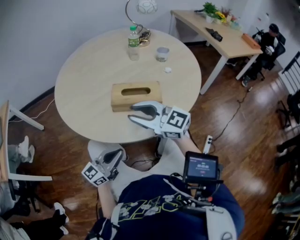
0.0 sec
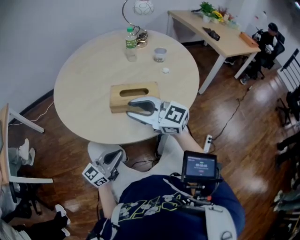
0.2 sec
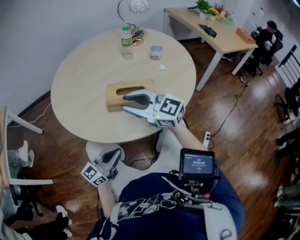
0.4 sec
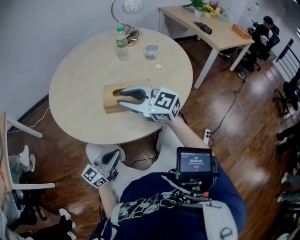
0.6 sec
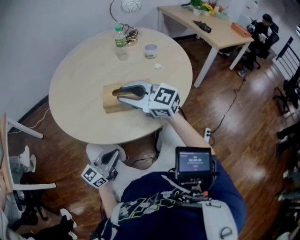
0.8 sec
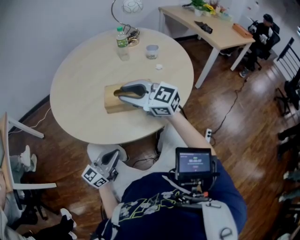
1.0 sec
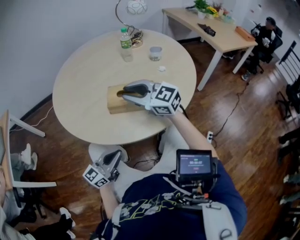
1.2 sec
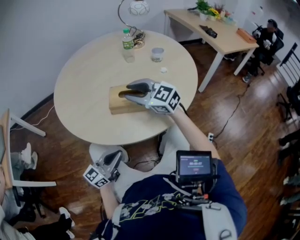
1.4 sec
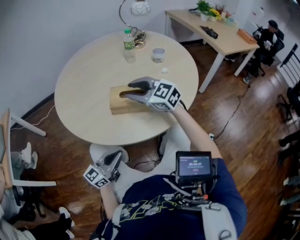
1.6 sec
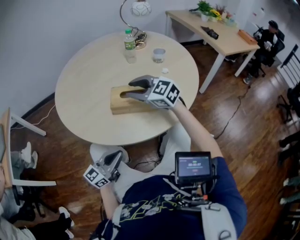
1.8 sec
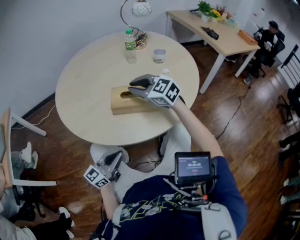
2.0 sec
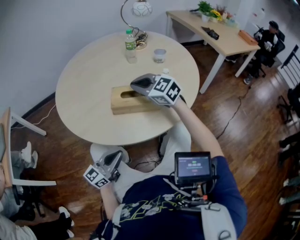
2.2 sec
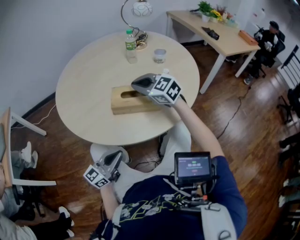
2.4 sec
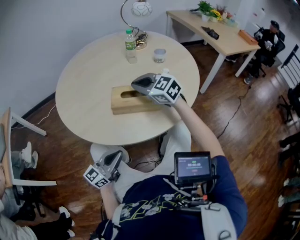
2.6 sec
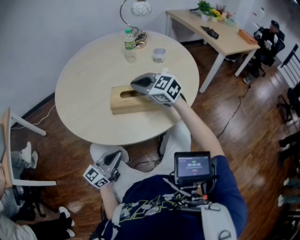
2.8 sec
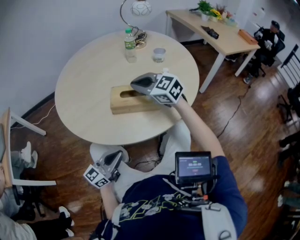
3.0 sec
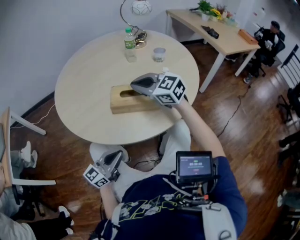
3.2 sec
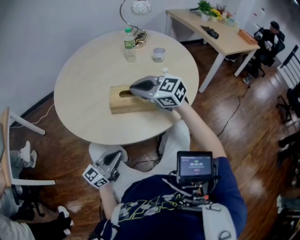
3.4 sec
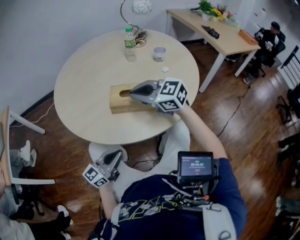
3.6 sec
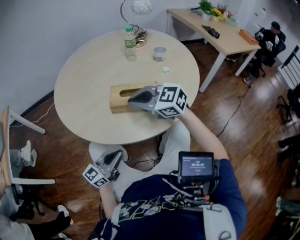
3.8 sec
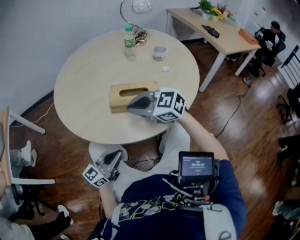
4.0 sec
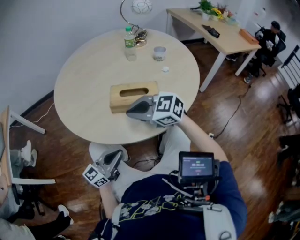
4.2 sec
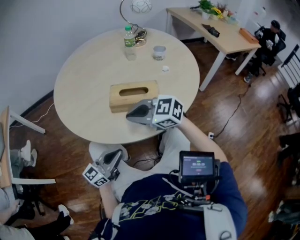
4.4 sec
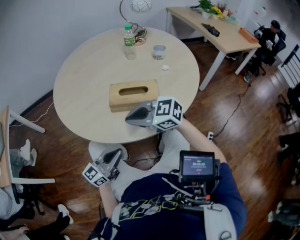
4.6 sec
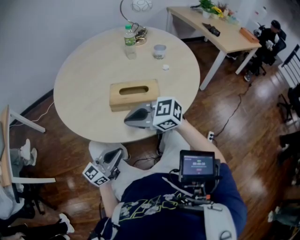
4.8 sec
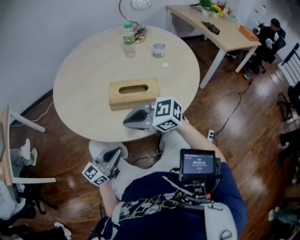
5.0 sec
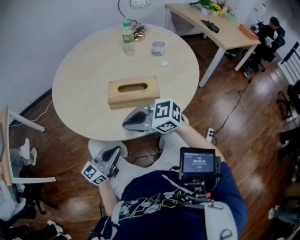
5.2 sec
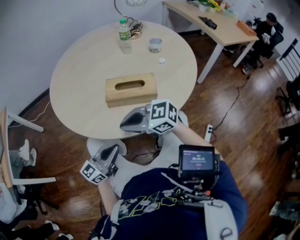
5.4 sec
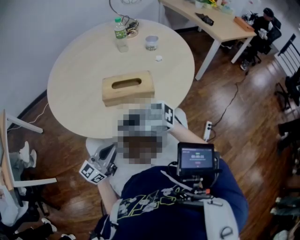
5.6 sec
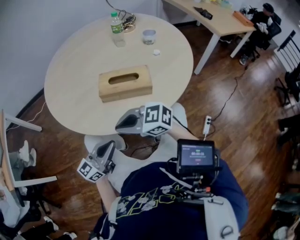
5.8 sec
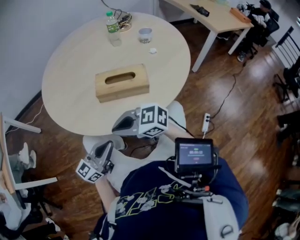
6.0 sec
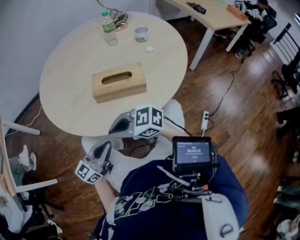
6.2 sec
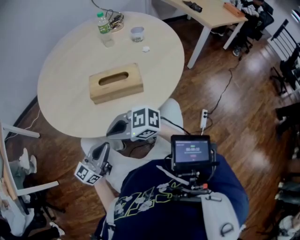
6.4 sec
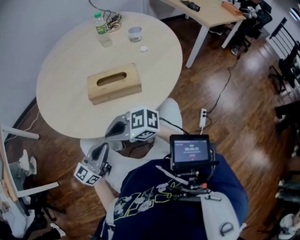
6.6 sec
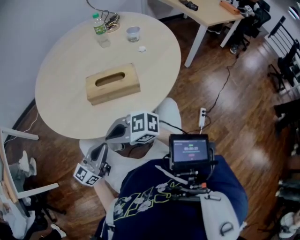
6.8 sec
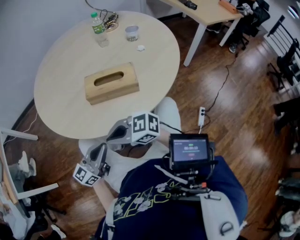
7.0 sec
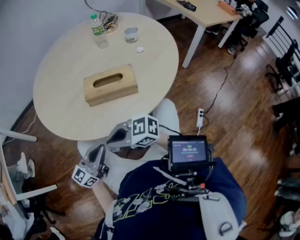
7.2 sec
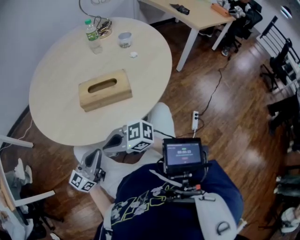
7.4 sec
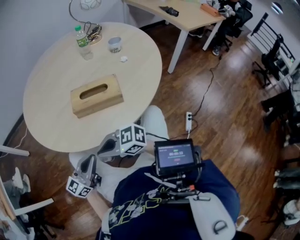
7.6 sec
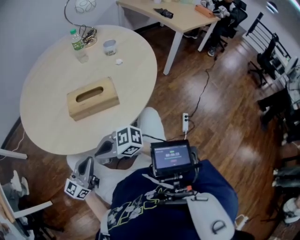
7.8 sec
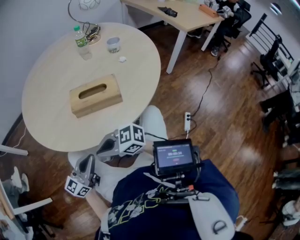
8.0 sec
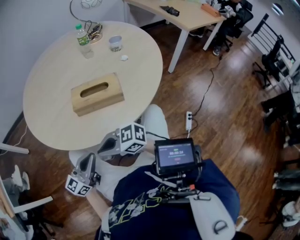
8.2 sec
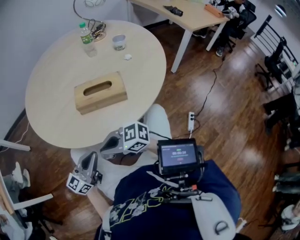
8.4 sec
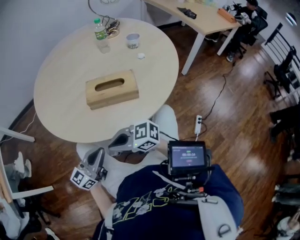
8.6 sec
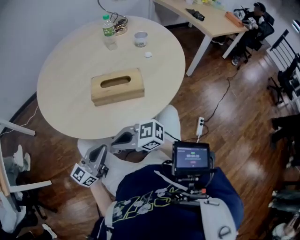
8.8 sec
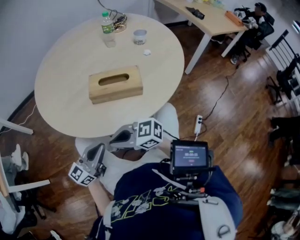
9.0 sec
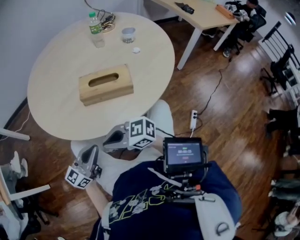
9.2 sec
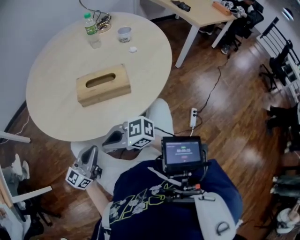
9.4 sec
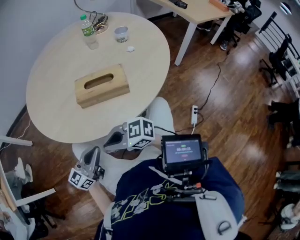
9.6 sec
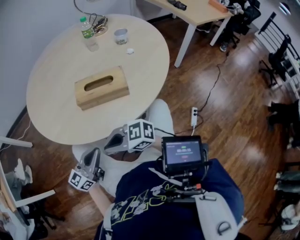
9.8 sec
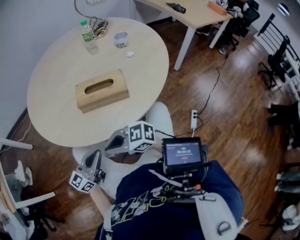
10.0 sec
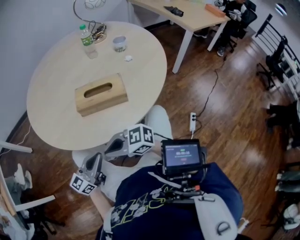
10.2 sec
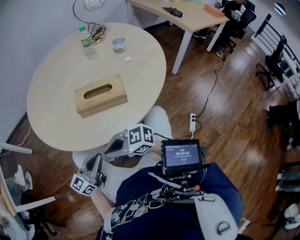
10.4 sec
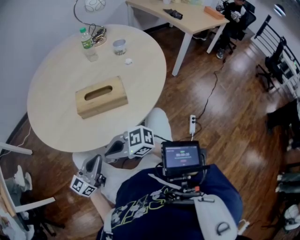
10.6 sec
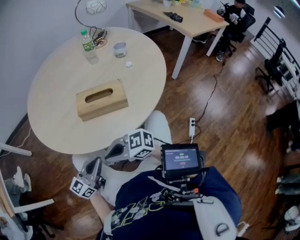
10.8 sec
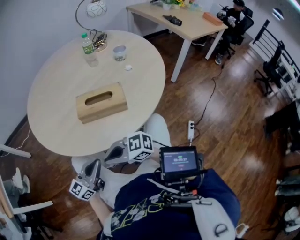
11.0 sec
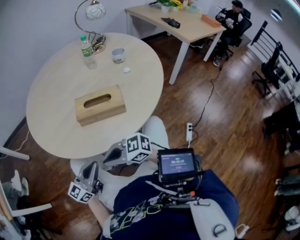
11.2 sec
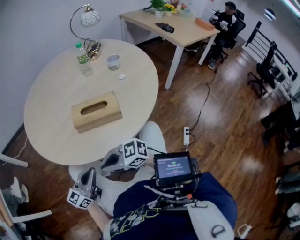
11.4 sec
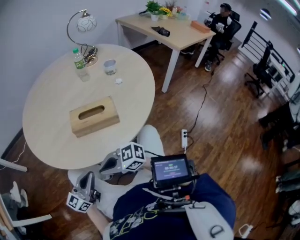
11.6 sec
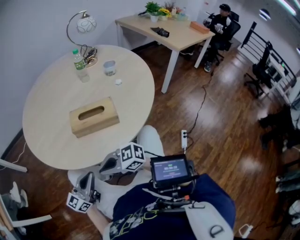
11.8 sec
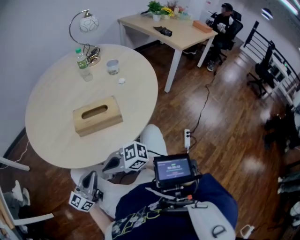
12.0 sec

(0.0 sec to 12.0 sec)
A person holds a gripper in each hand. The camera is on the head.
0.0 sec - 1.6 sec: The right gripper travels forward by some 10 cm.
1.6 sec - 3.0 sec: The right gripper closes its fingers.
3.0 sec - 4.4 sec: The right gripper moves some 15 cm, and rotates roughly 20 degrees.
4.4 sec - 6.0 sec: The right gripper moves about 10 cm.
6.0 sec - 7.6 sec: The right gripper moves about 5 cm.
7.6 sec - 9.0 sec: Both grippers stay about where they are.
9.0 sec - 12.0 sec: There are only small adjustments of the grippers.

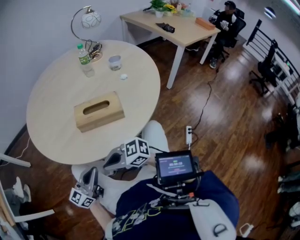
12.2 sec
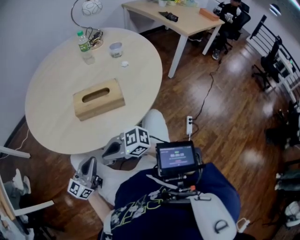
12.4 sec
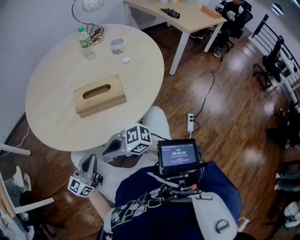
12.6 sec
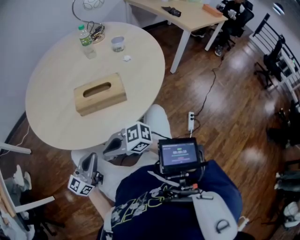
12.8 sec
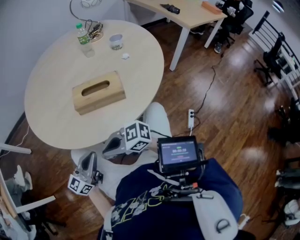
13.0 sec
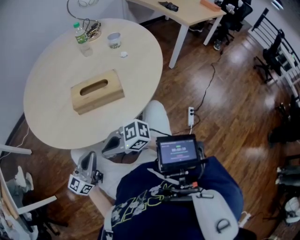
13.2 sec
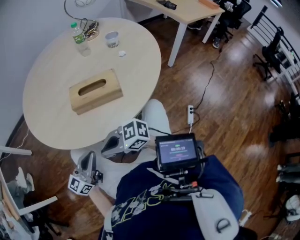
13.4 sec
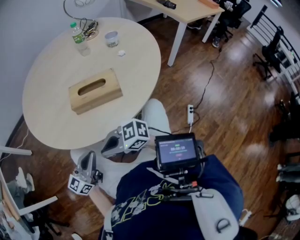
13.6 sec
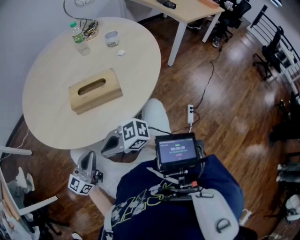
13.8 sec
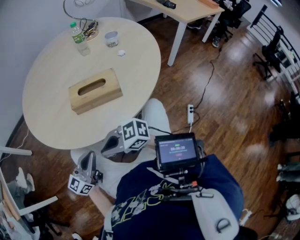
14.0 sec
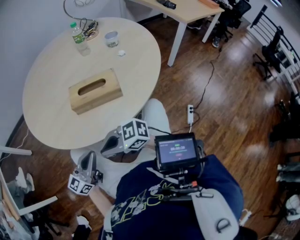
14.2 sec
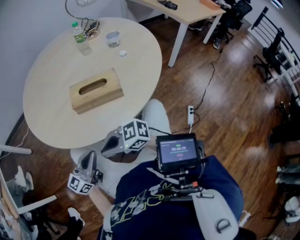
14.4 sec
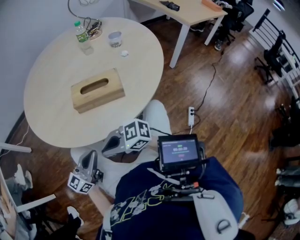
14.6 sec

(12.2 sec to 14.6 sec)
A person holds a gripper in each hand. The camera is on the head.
12.2 sec - 14.6 sec: Both grippers stay about where they are.

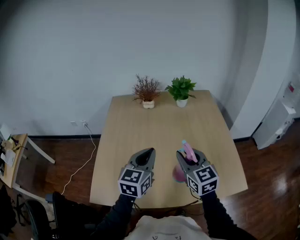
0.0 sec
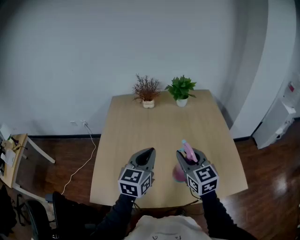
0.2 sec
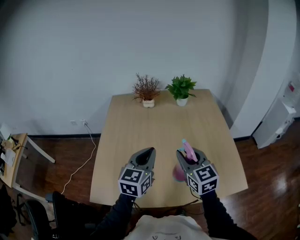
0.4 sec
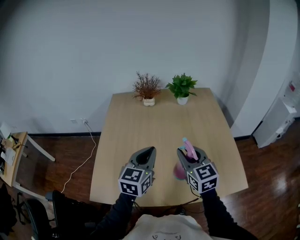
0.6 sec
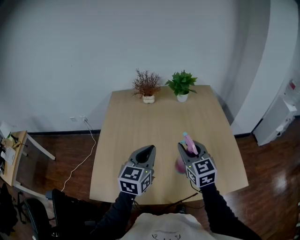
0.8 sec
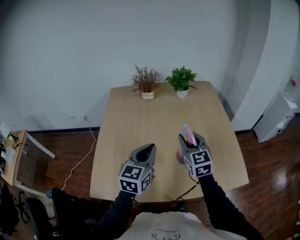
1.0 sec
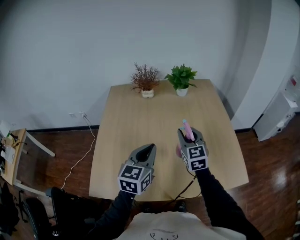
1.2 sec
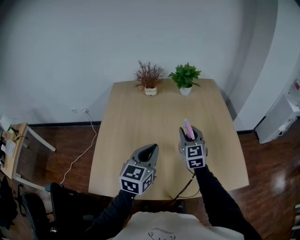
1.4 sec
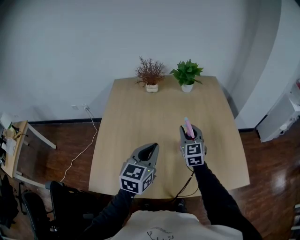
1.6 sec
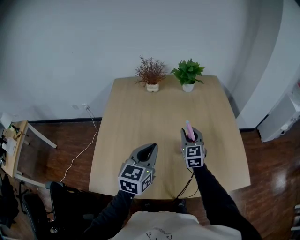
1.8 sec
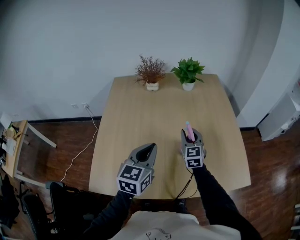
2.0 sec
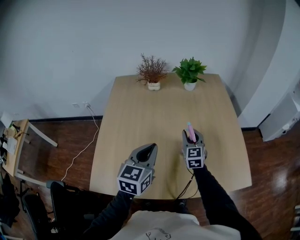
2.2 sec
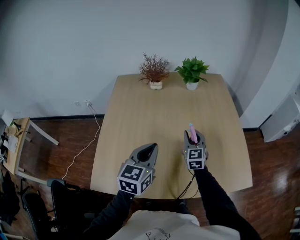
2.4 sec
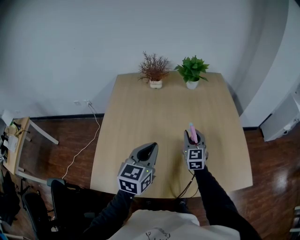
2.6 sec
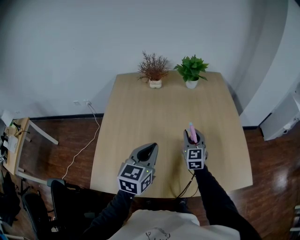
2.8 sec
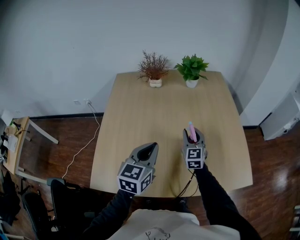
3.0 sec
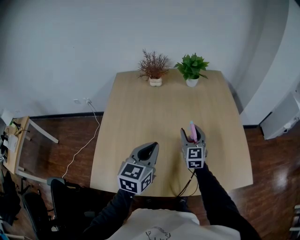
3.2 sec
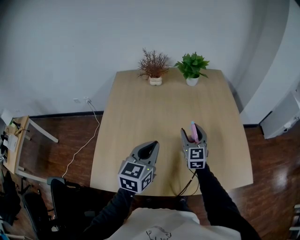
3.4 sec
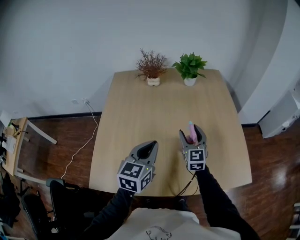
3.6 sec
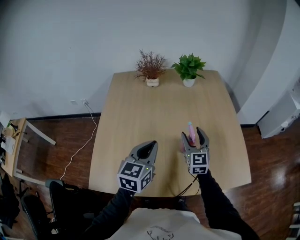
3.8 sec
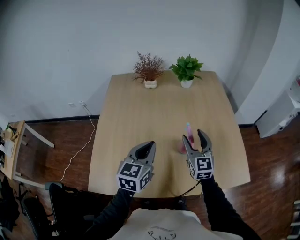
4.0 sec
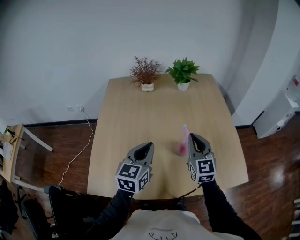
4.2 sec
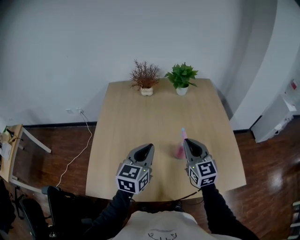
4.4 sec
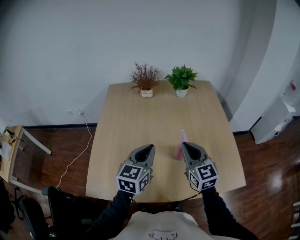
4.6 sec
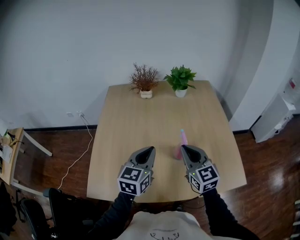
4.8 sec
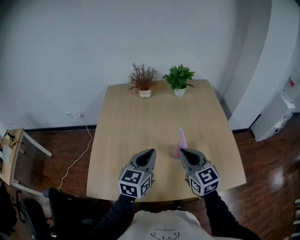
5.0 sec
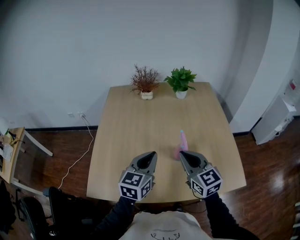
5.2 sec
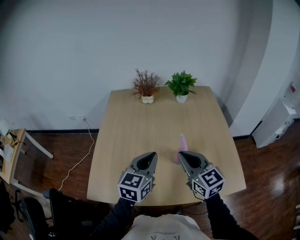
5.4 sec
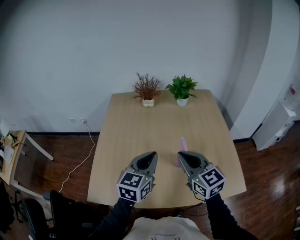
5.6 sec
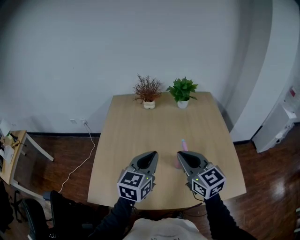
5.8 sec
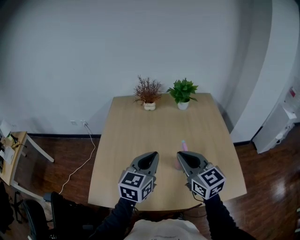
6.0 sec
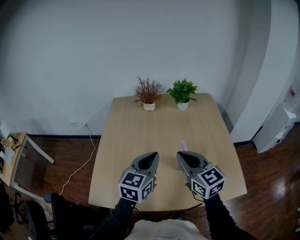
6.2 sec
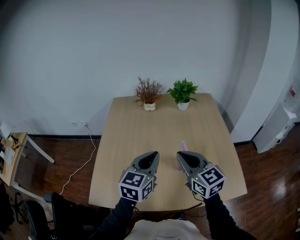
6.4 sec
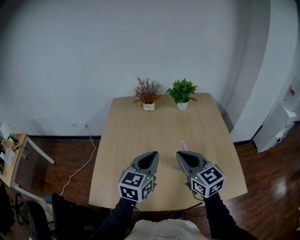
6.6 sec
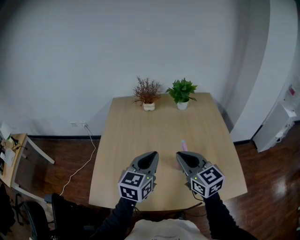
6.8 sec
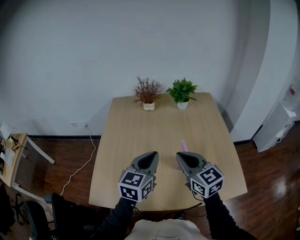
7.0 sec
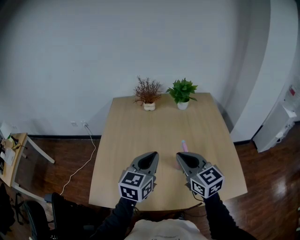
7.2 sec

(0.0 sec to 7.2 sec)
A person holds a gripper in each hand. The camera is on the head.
0.0 sec - 1.4 sec: The right gripper travels forward and downward by some 15 cm.
1.4 sec - 2.8 sec: The right gripper goes roughly 10 cm downward.
2.8 sec - 4.4 sec: The right gripper goes approximately 15 cm upward and backward, and opens, then closes again.
4.4 sec - 5.8 sec: The right gripper heads upward and backward, covering about 10 cm. Meanwhile the left gripper moves some 5 cm.
5.8 sec - 7.2 sec: Both grippers stay put.

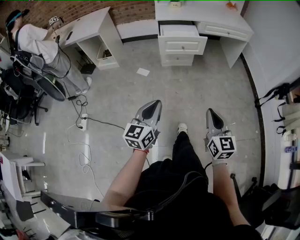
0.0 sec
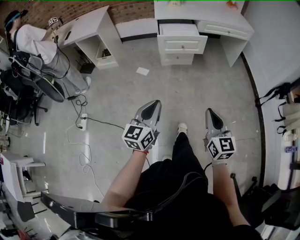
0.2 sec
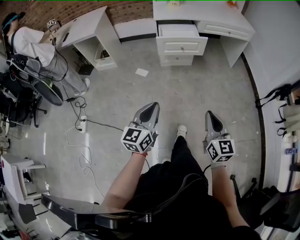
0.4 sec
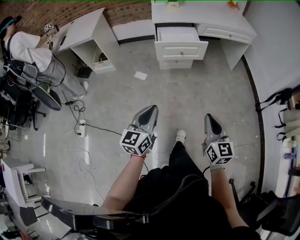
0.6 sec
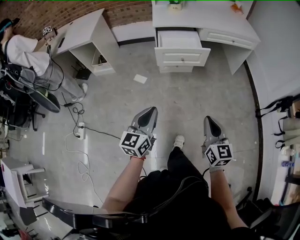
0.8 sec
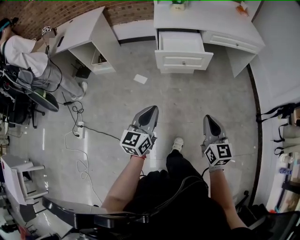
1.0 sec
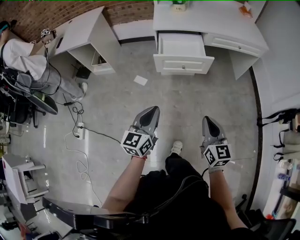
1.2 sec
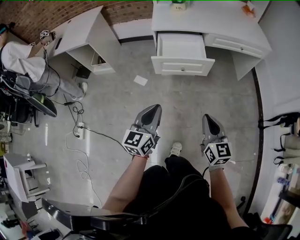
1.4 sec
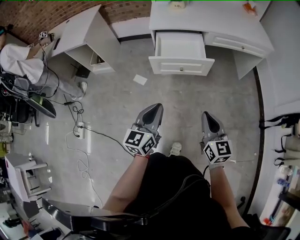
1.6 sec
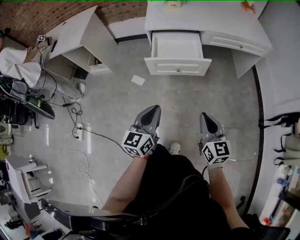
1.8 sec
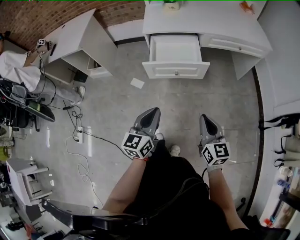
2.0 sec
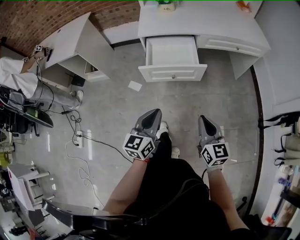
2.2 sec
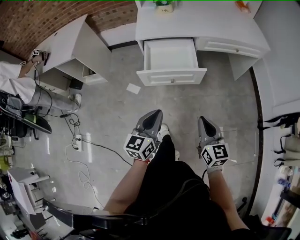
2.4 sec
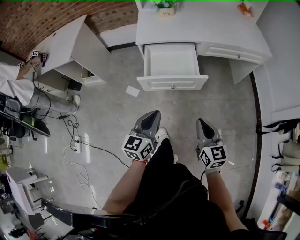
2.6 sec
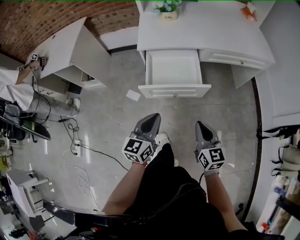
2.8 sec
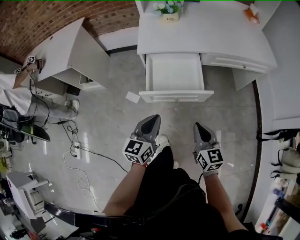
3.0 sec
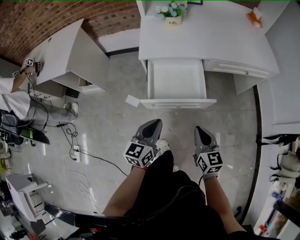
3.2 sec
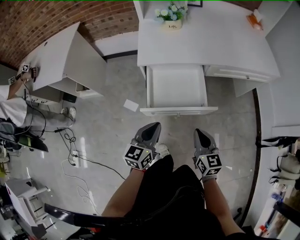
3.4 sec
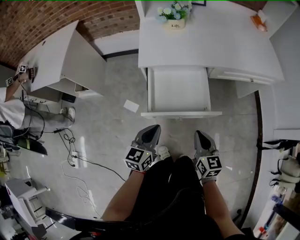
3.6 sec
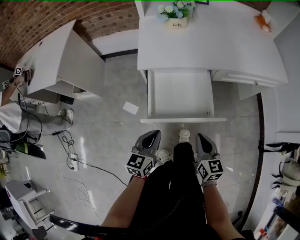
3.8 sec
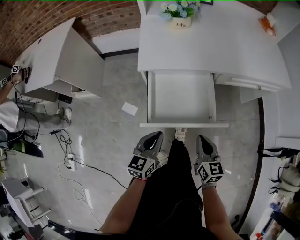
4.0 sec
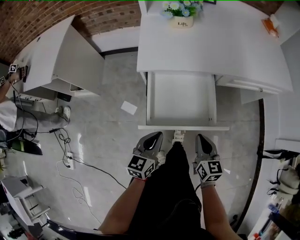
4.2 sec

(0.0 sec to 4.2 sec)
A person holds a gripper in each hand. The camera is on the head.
0.0 sec - 1.4 sec: The two grippers go roughly 30 cm forward.
1.4 sec - 2.8 sec: The two grippers go approximately 15 cm forward.
2.8 sec - 4.2 sec: The left gripper goes approximately 20 cm downward and forward, while the right gripper moves forward and downward, roughly 20 cm.
